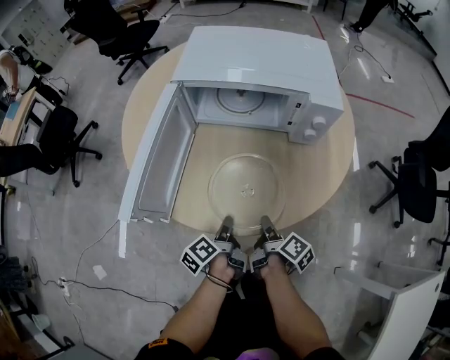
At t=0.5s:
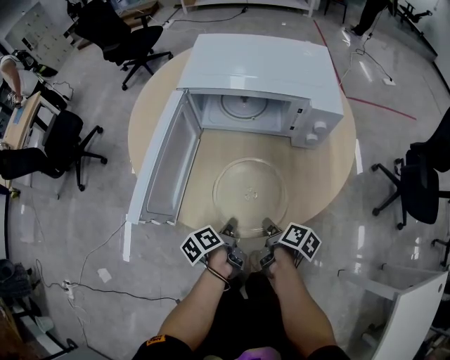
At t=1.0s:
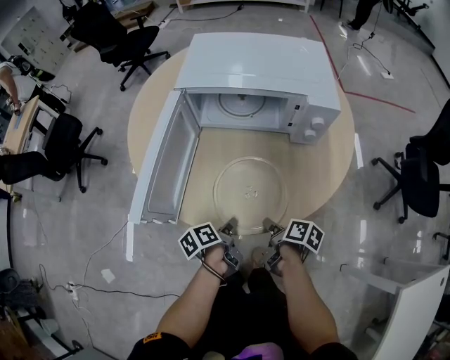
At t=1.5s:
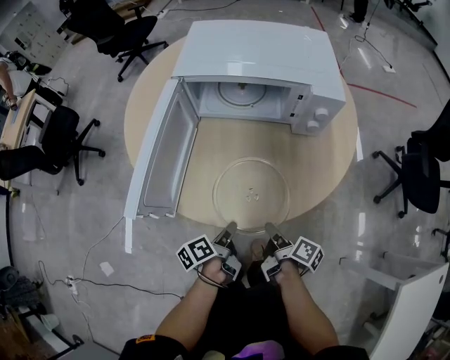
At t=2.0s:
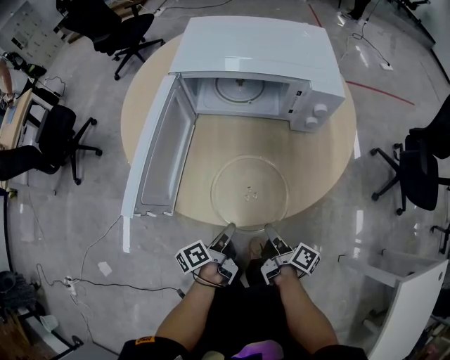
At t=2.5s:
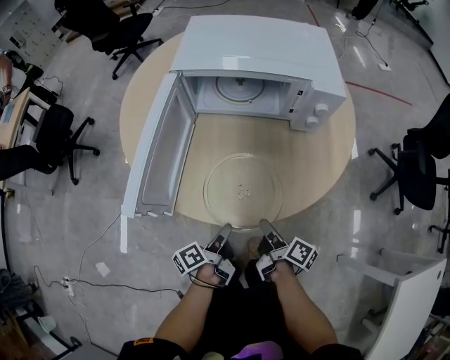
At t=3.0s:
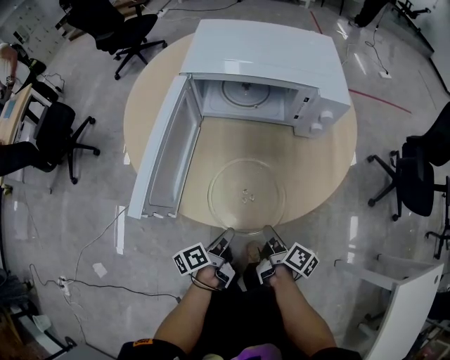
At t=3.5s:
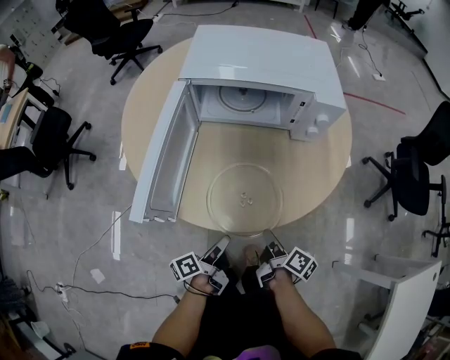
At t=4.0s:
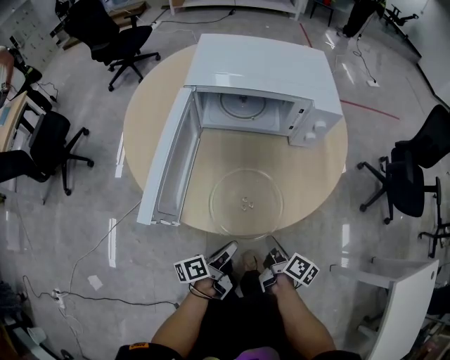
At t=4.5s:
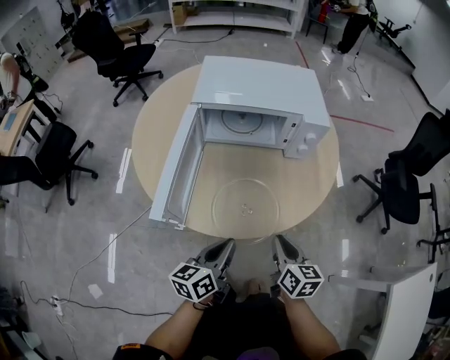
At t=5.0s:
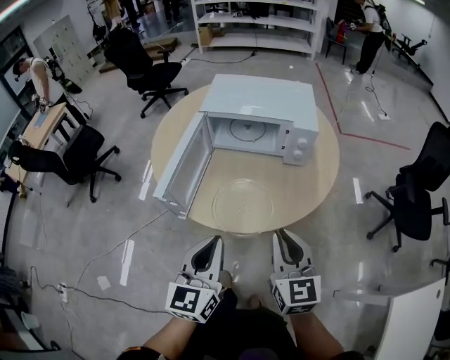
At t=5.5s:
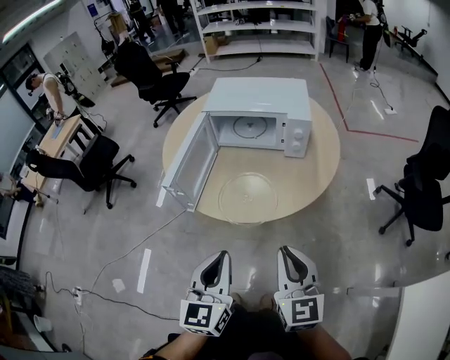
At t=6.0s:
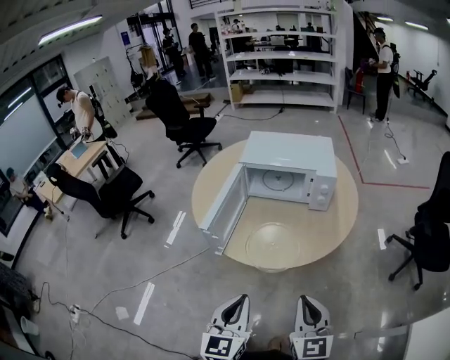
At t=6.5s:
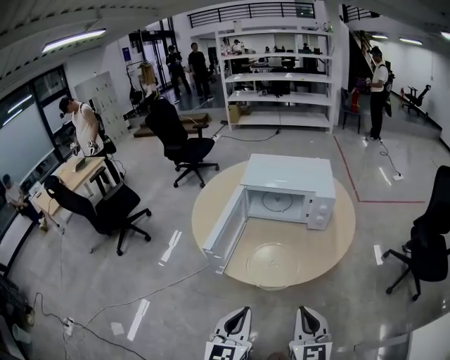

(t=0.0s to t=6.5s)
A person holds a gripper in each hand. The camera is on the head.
t=0.0s - t=2.0s: The right gripper goes approximately 5 cm backward.
t=2.0s - t=4.5s: The grippers both shift upward by some 15 cm. The left gripper rolls clockwise, seen from behind, by approximately 40 degrees. Meanwhile the right gripper twists about 50 degrees counterclockwise, seen from behind.
t=4.5s - t=6.5s: Both grippers travel together backward and upward, approximately 25 cm. The left gripper swivels approximately 50 degrees, while the right gripper swivels some 40 degrees.

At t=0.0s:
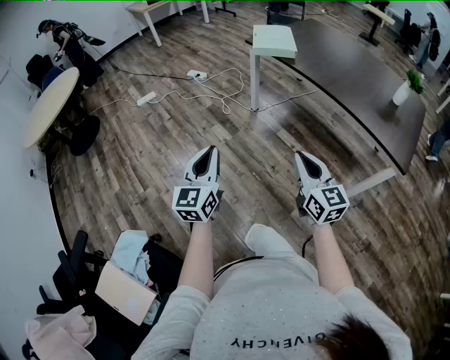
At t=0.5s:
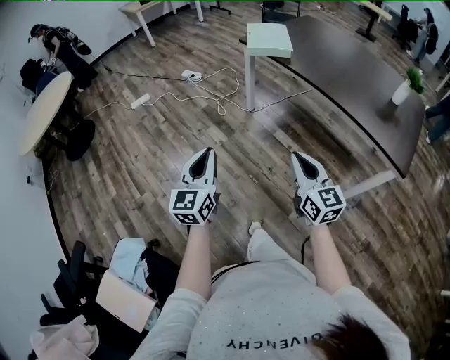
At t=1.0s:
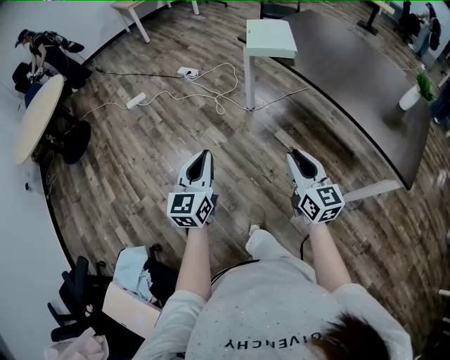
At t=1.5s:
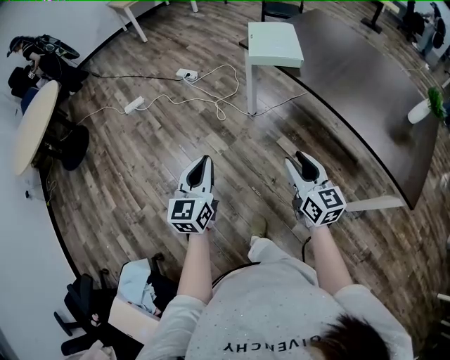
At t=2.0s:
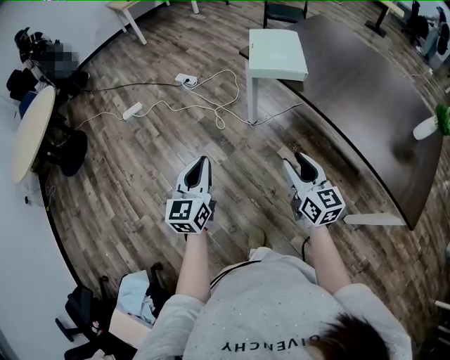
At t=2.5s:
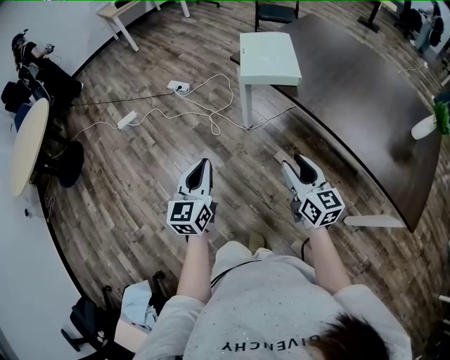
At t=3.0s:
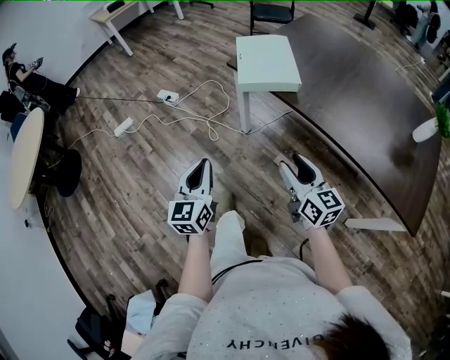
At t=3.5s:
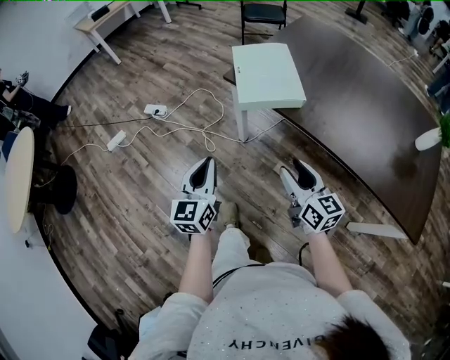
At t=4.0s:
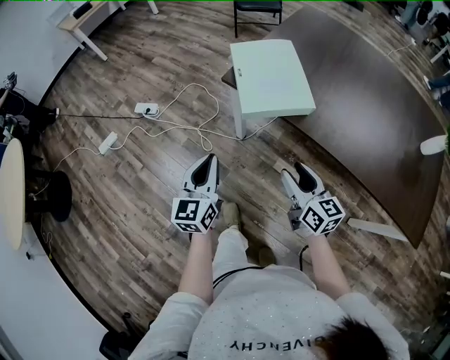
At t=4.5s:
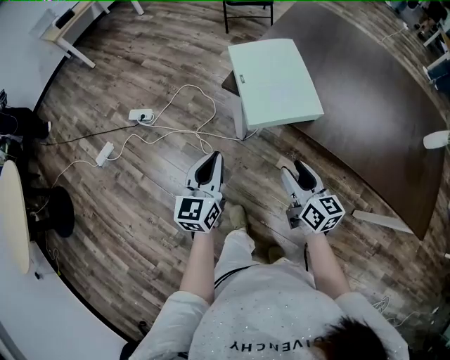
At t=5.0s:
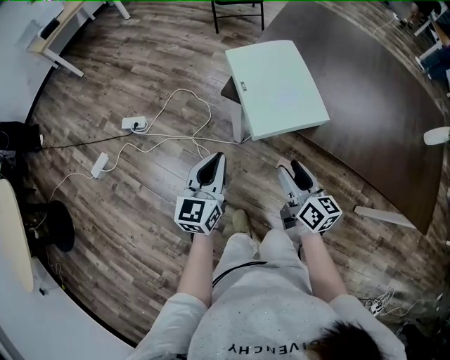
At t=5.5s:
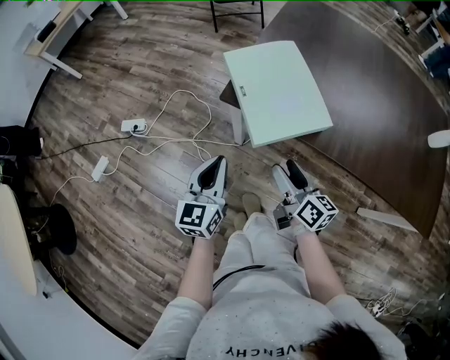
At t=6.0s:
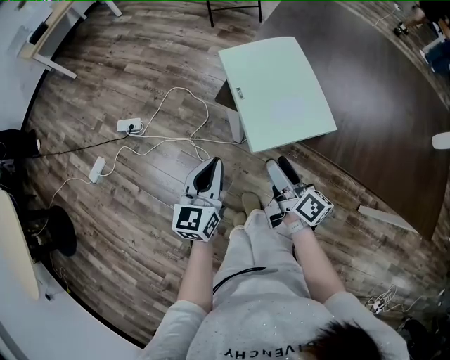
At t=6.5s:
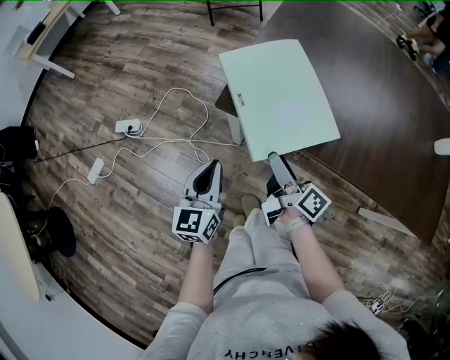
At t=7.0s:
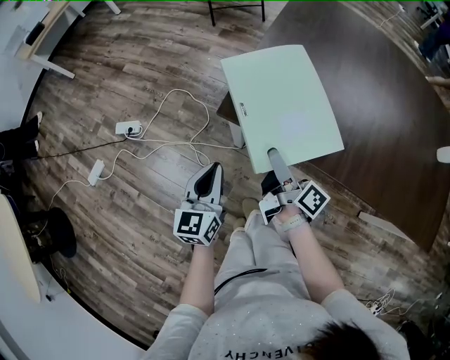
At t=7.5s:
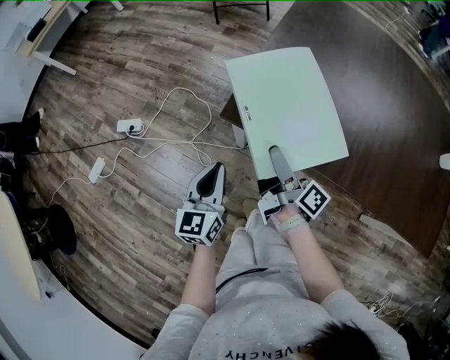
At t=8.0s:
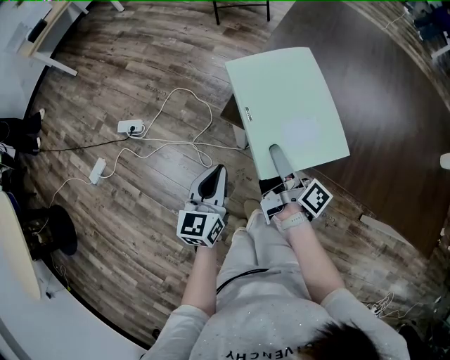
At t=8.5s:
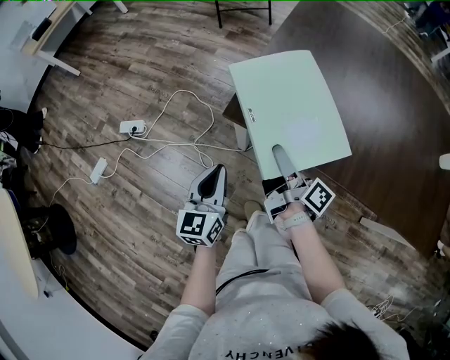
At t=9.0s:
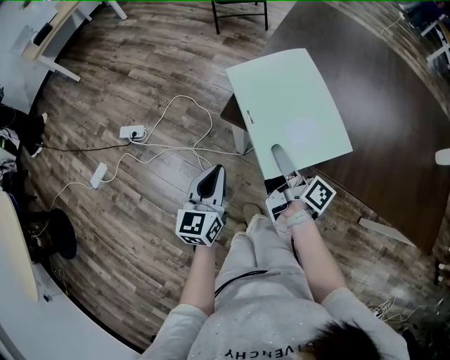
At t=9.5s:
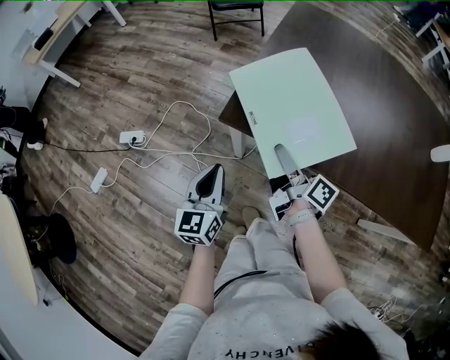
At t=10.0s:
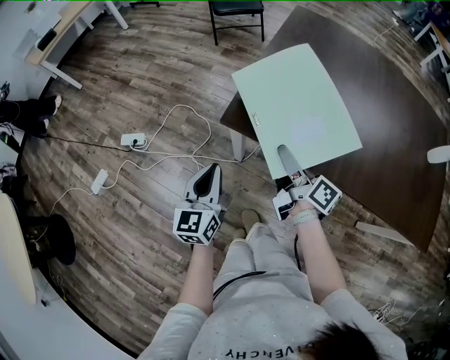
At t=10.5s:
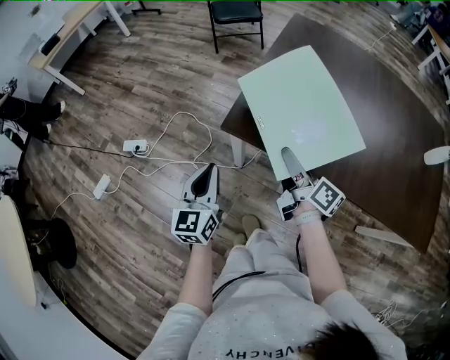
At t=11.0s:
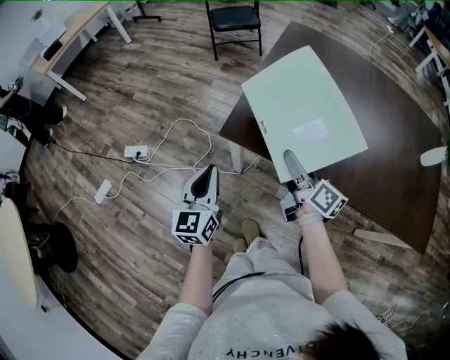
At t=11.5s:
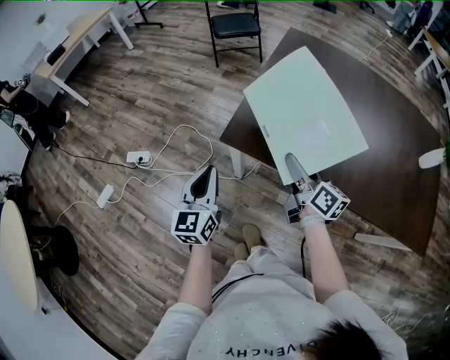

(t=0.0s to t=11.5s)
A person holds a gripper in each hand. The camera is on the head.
t=0.0s - t=2.0s: Both grippers move forward, roughly 35 cm. The right gripper opens.
t=2.0s - t=4.0s: The grippers both shift forward by about 30 cm.
t=4.0s - t=6.0s: The right gripper goes about 20 cm forward, to the left and downward, rotates about 40 degrees, and opens up. The left gripper shifts some 20 cm forward and downward.
t=6.0s - t=7.5s: The right gripper travels forward by some 10 cm, and changes its angle by about 20 degrees. The left gripper travels forward by some 5 cm.
t=7.5s - t=9.5s: The right gripper ends up roughly 5 cm from where it was, and closes; the left gripper ends up about 5 cm from where it was.
t=9.5s - t=11.5s: The grippers both shift upward by approximately 10 cm. The right gripper rotates about 30 degrees.

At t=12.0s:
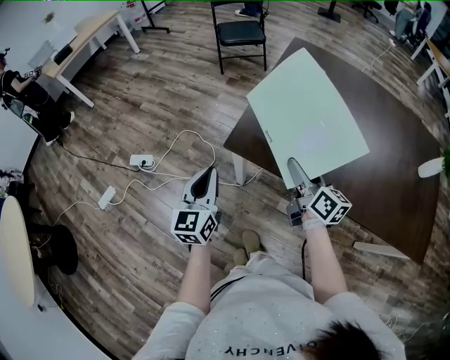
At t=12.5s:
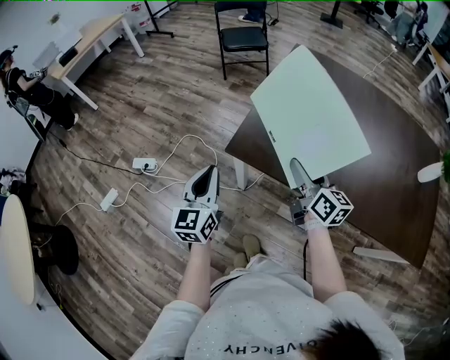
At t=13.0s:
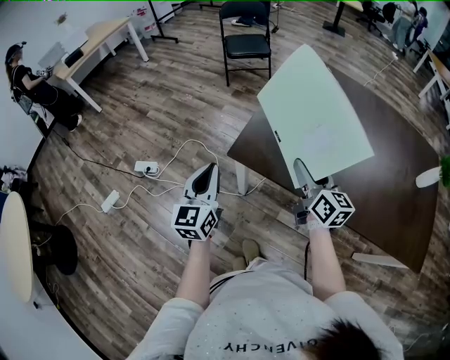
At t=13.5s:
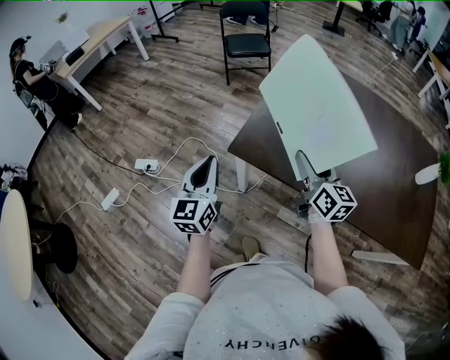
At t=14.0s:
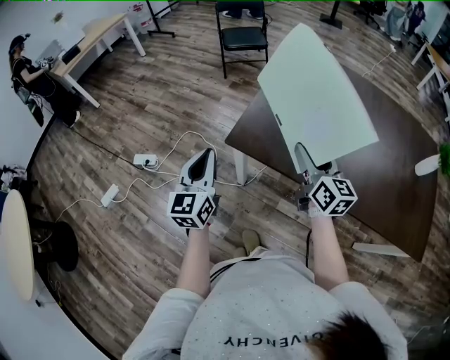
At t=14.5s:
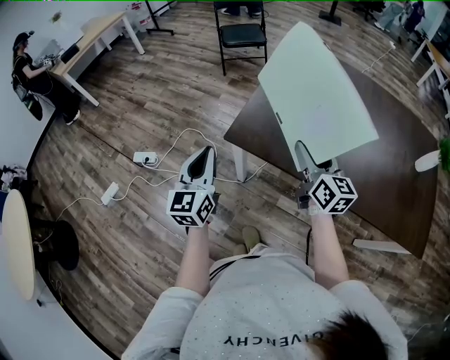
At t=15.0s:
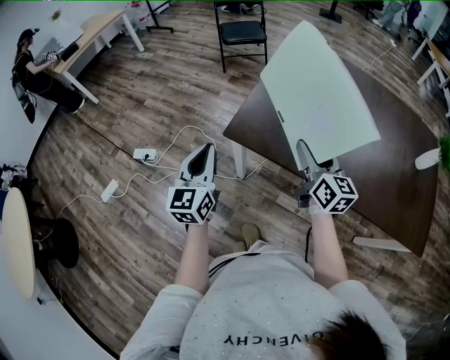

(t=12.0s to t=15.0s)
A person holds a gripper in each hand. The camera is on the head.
t=12.0s - t=13.5s: The two grippers go some 5 cm upward.
t=13.5s - t=15.0s: The grippers make only small movements.

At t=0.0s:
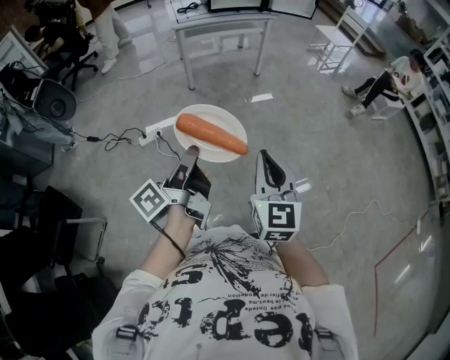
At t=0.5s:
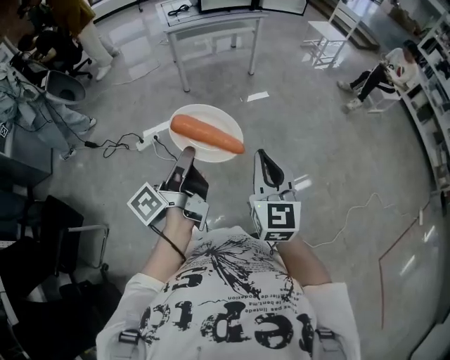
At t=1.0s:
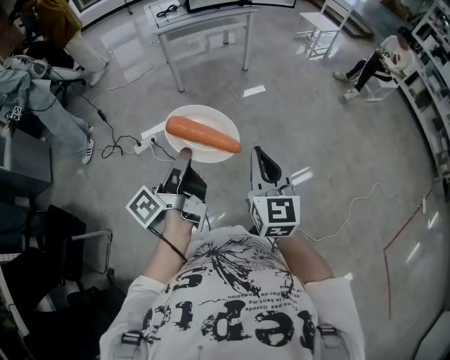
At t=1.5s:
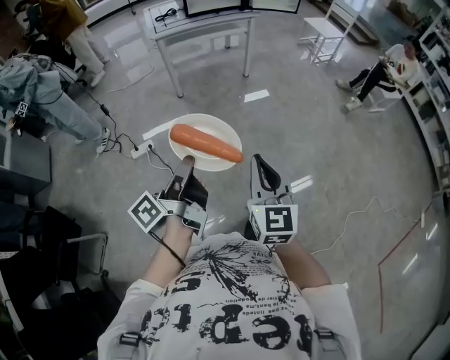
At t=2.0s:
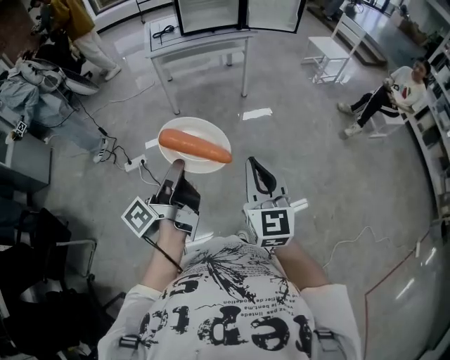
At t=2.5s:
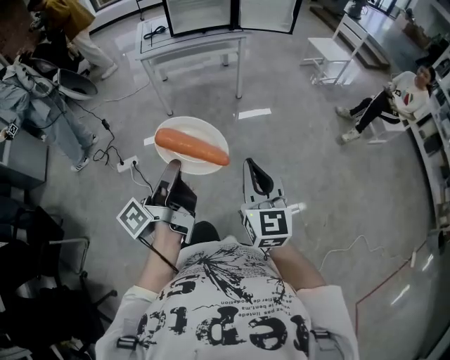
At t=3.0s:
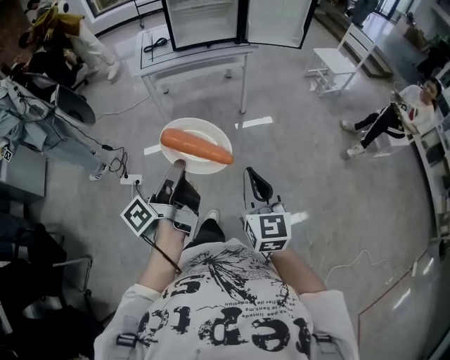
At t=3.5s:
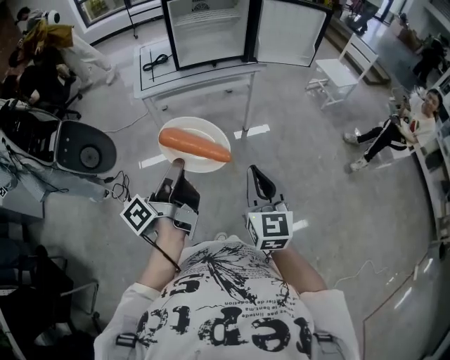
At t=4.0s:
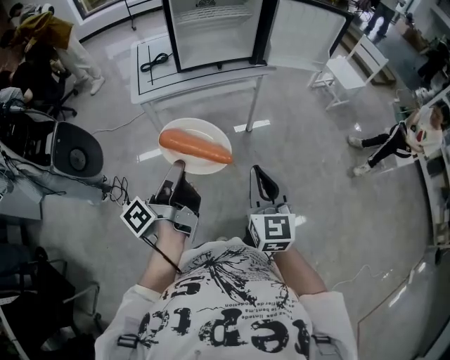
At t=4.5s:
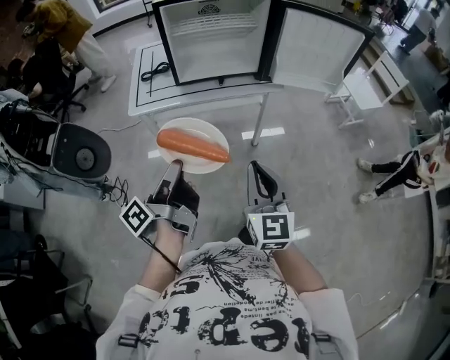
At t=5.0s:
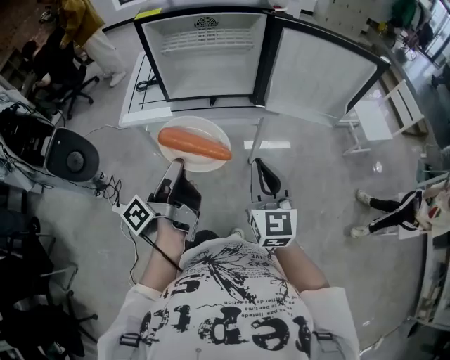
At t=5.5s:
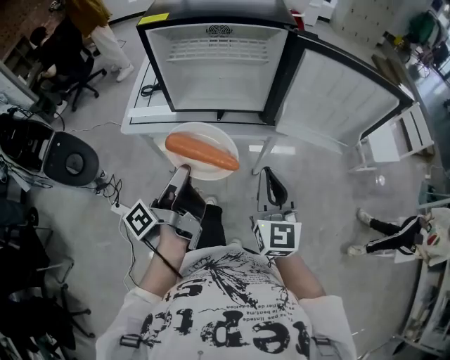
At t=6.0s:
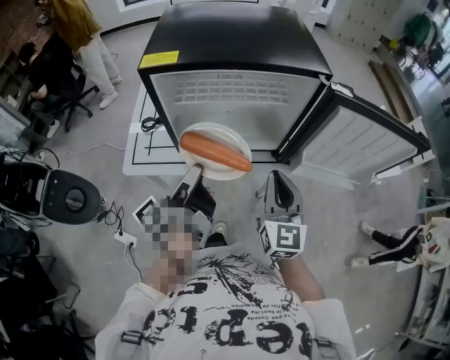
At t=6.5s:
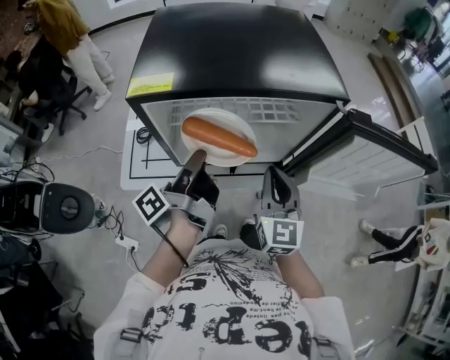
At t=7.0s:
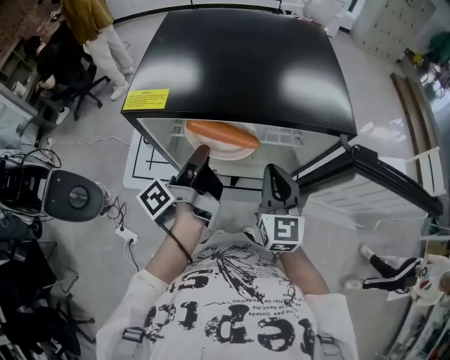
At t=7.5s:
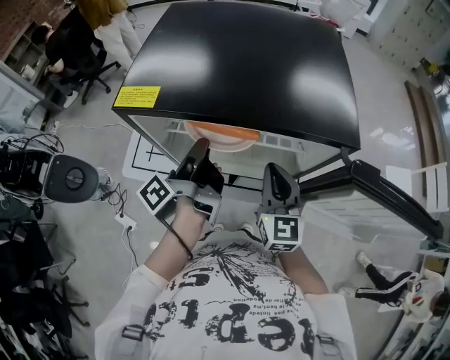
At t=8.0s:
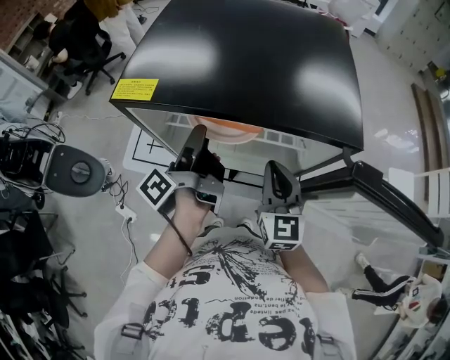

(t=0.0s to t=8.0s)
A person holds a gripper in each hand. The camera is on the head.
t=0.0s - t=2.0s: The right gripper changes place by some 25 cm.
t=2.0s - t=4.0s: The right gripper ends up approximately 40 cm from where it was.
t=4.0s - t=6.0s: The right gripper moves some 50 cm.
t=6.0s - t=8.0s: The right gripper shifts by some 15 cm.
